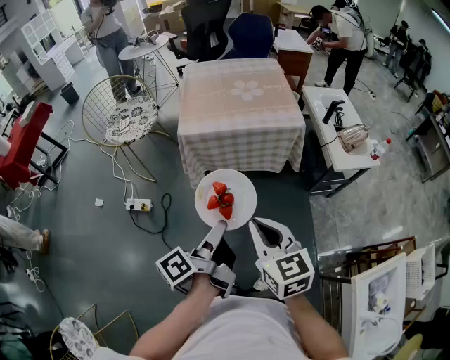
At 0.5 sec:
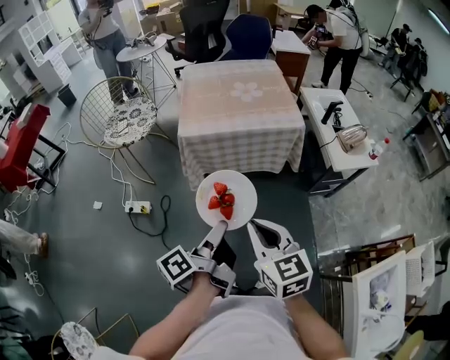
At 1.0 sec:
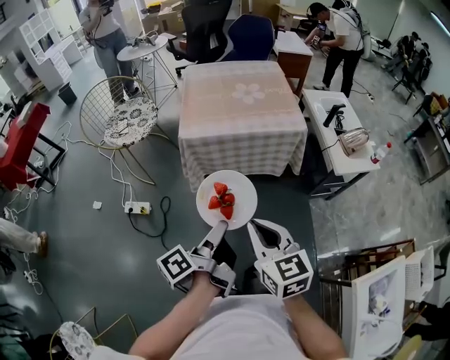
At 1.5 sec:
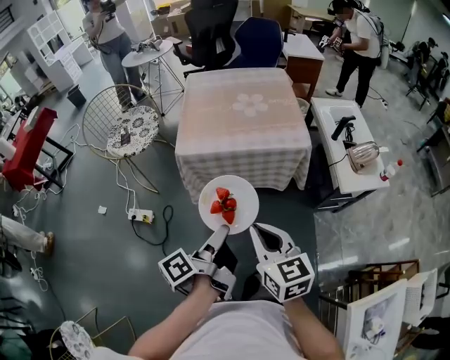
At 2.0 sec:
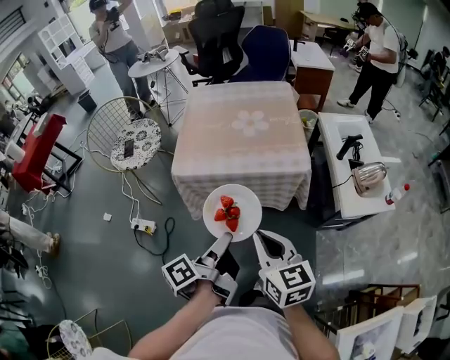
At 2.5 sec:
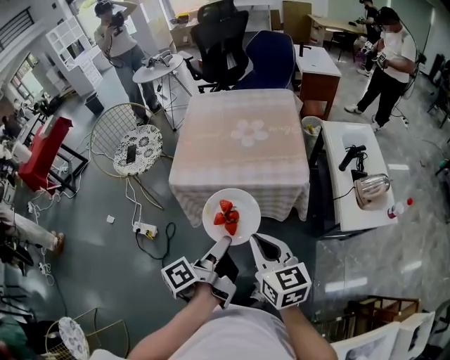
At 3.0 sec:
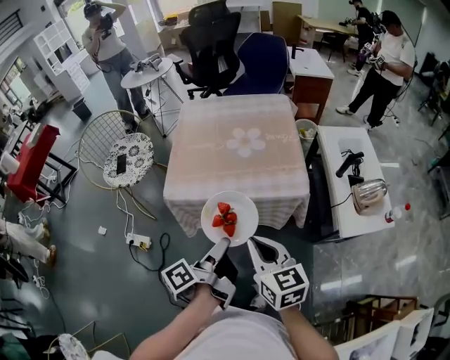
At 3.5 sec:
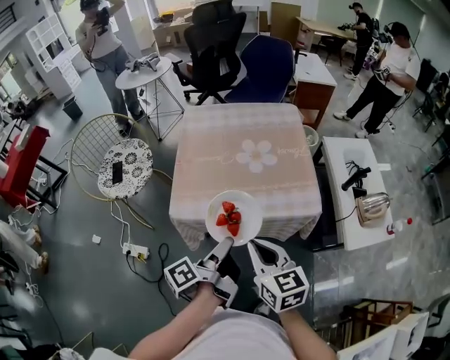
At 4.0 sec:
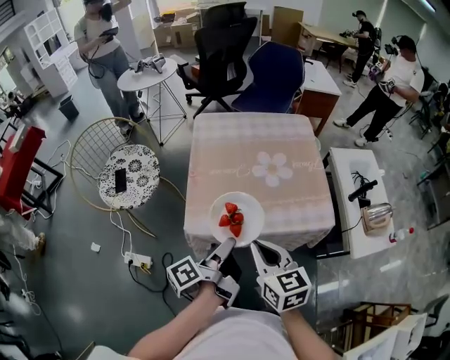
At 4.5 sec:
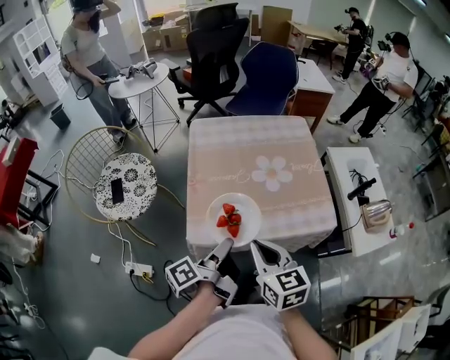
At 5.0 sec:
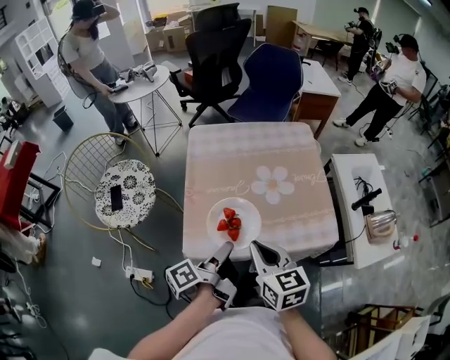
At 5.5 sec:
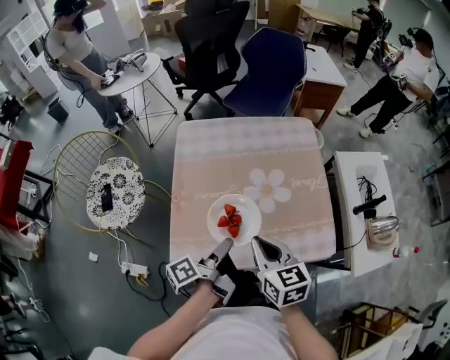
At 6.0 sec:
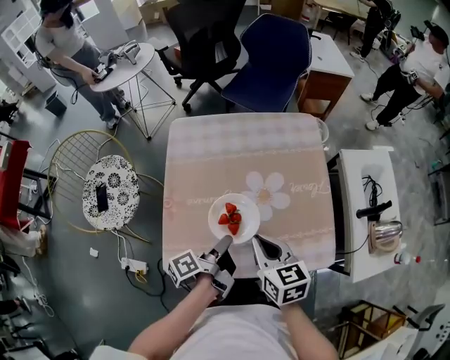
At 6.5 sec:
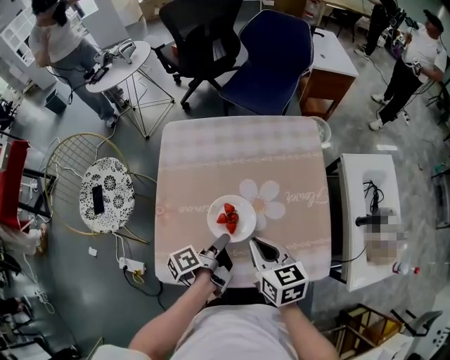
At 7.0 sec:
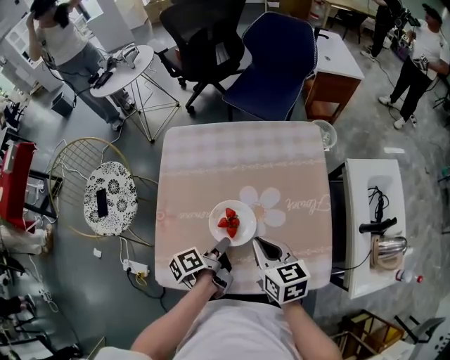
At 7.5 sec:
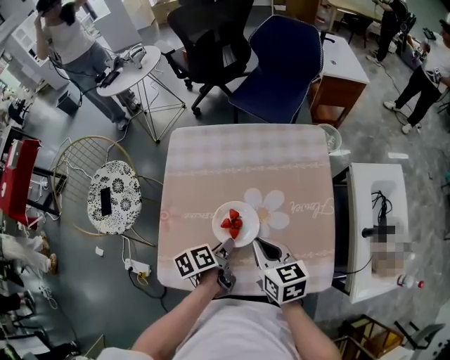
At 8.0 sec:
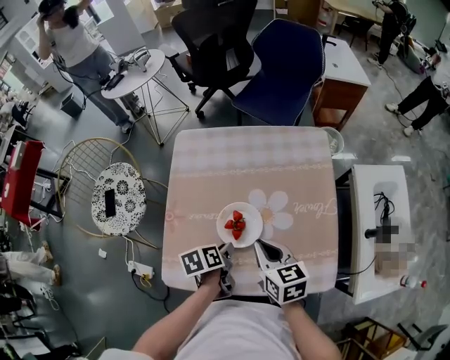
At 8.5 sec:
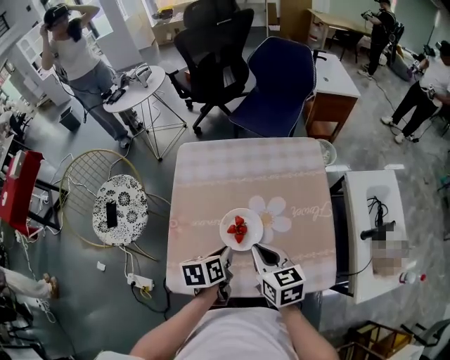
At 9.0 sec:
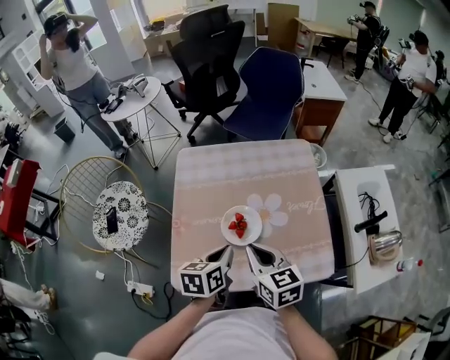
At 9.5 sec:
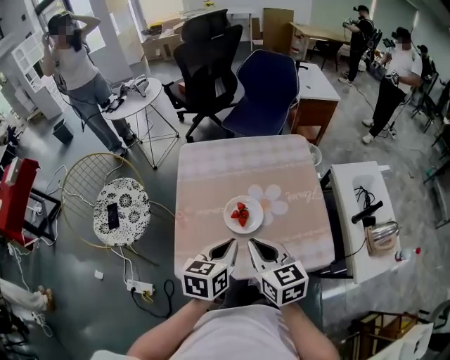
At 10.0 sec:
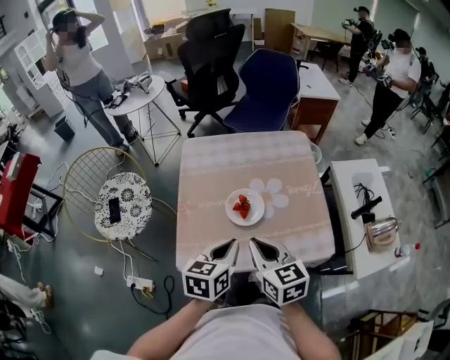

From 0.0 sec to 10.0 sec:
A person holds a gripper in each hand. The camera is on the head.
From 0.0 sec to 2.0 sec: The right gripper shifts by some 20 cm.
From 2.0 sec to 4.0 sec: The right gripper shifts by roughly 25 cm.
From 4.0 sec to 6.0 sec: The right gripper ends up some 25 cm from where it was.
From 6.0 sec to 8.0 sec: The right gripper ends up roughly 5 cm from where it was.
From 8.0 sec to 10.0 sec: The right gripper moves approximately 15 cm.

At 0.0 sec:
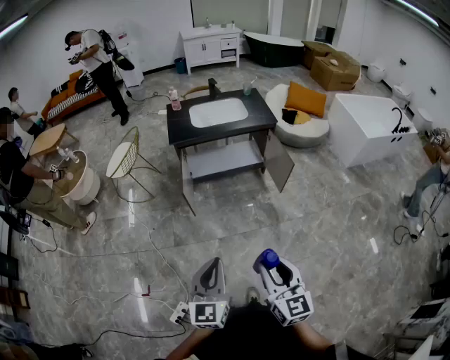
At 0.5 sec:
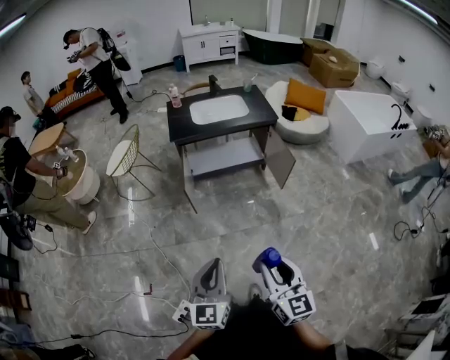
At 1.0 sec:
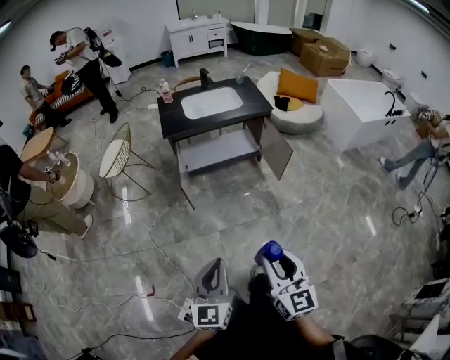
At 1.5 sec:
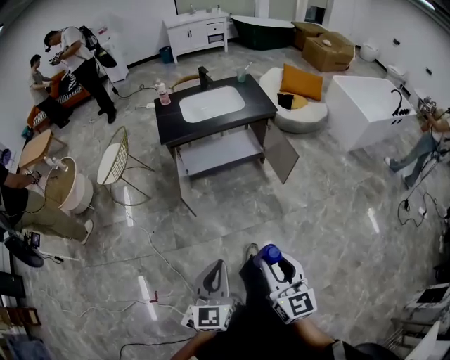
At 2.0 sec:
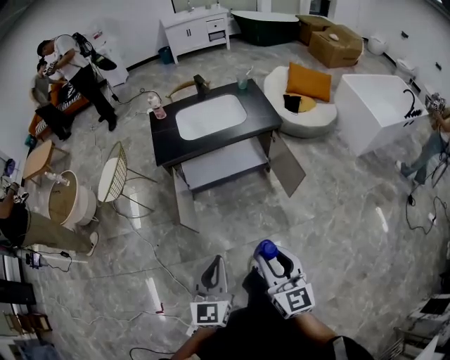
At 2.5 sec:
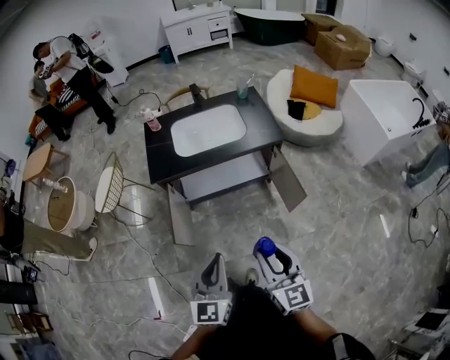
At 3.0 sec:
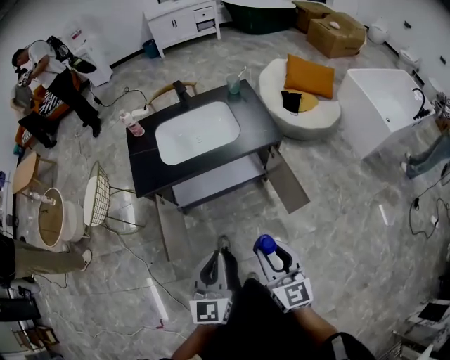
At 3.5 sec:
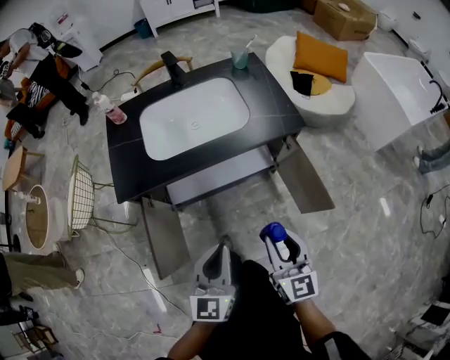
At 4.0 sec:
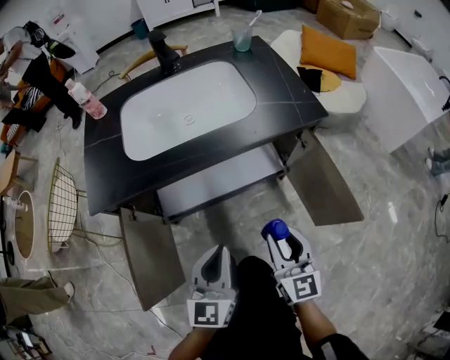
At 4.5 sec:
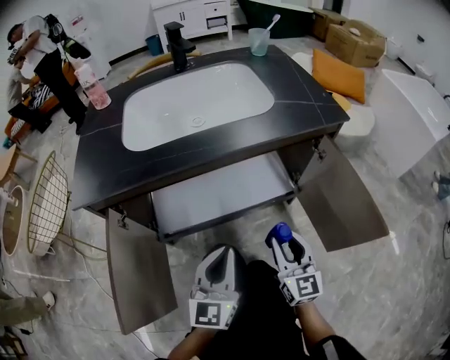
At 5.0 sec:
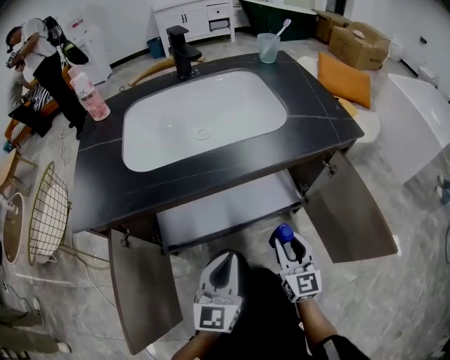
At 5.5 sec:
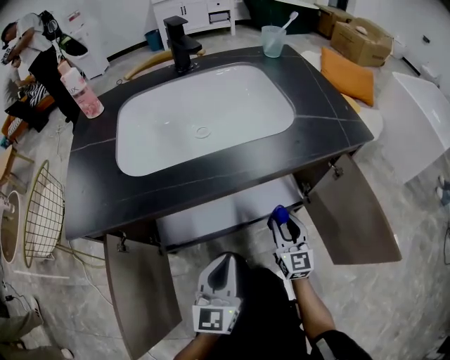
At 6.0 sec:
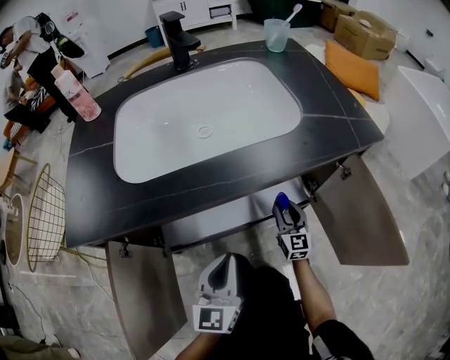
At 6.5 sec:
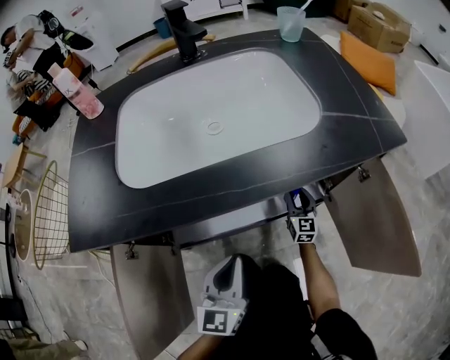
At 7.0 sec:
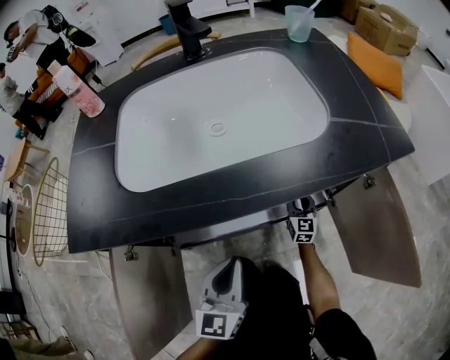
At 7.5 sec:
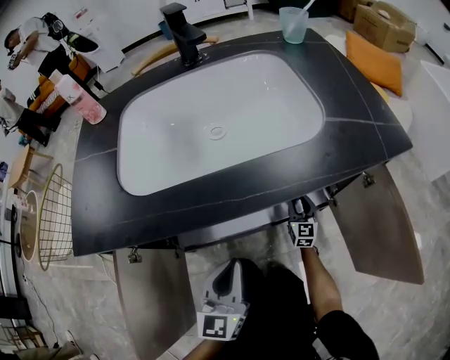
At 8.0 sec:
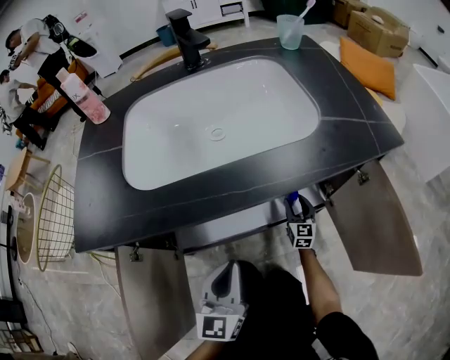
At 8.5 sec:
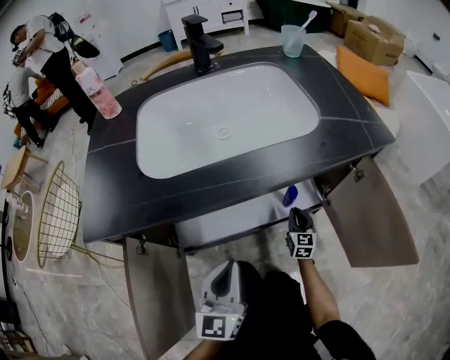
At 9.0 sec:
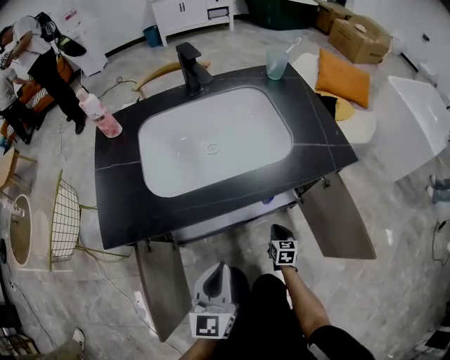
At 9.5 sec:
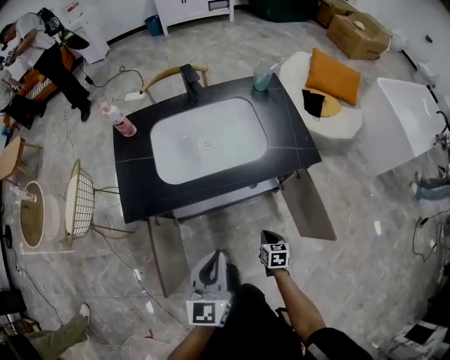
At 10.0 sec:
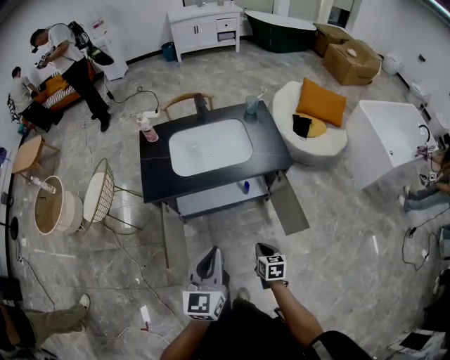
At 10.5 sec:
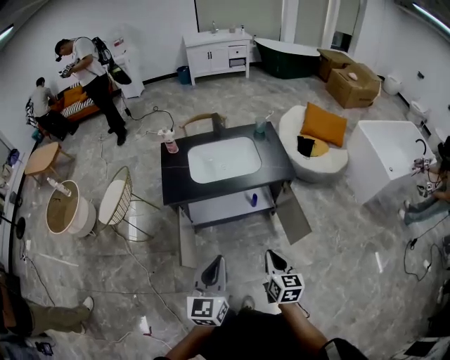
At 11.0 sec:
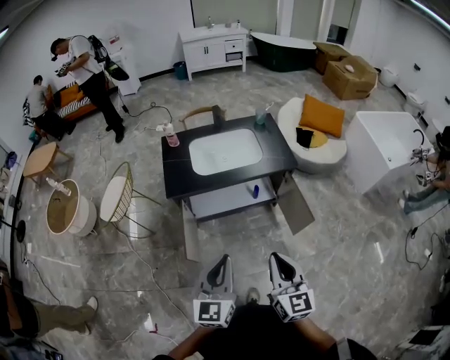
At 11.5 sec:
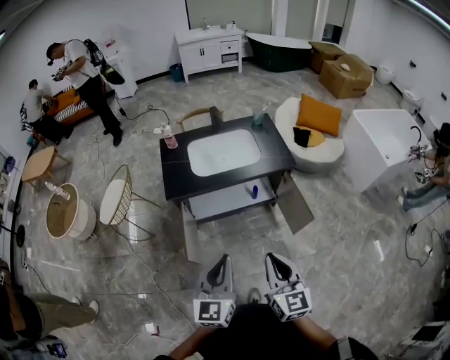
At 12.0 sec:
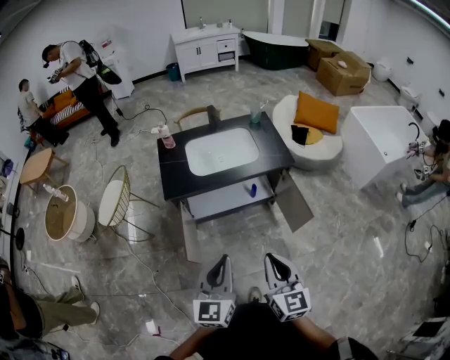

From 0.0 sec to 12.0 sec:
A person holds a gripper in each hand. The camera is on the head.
From 0.0 sec to 2.0 sec: The grippers both shift forward by roughly 25 cm.
From 2.0 sec to 4.0 sec: Both grippers are carried forward, about 40 cm. The two grippers go about 40 cm downward.
From 4.0 sec to 6.0 sec: The left gripper travels downward and forward by approximately 20 cm; the right gripper shifts roughly 40 cm downward and forward.
From 6.0 sec to 8.0 sec: The right gripper heads downward and forward, covering some 10 cm.
From 8.0 sec to 10.0 sec: Both grippers travel together upward and backward, some 60 cm. The right gripper points its fingers roughly 30 degrees further downward, and closes its fingers.
From 10.0 sec to 12.0 sec: The left gripper heads backward and upward, covering roughly 15 cm, while the right gripper moves upward and backward, about 35 cm, and angles its fingers upward, by approximately 40 degrees.

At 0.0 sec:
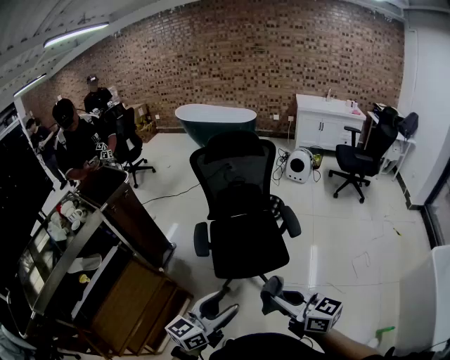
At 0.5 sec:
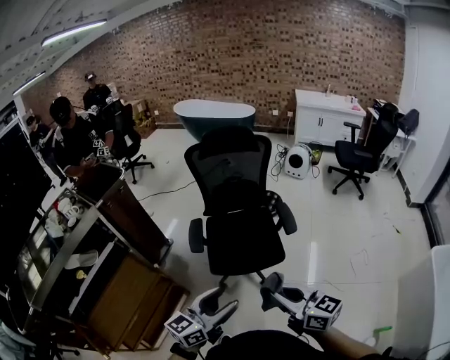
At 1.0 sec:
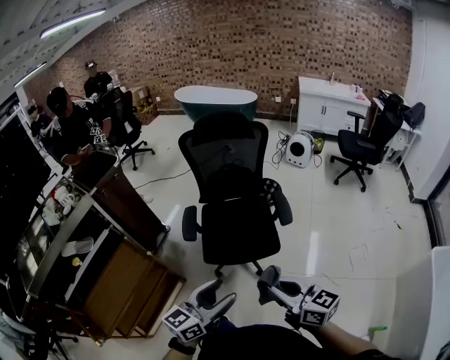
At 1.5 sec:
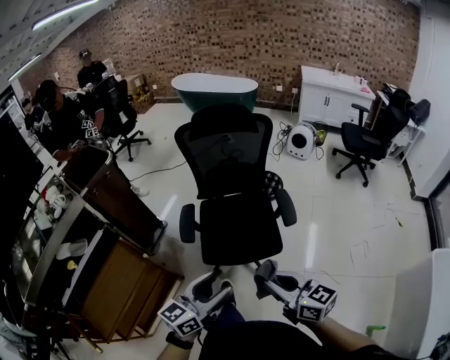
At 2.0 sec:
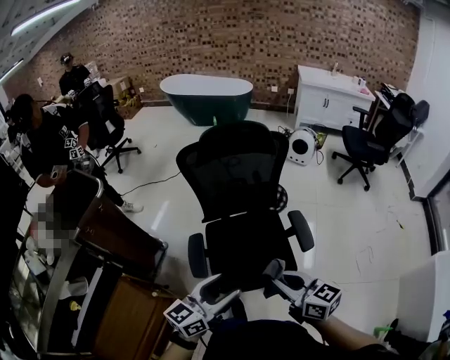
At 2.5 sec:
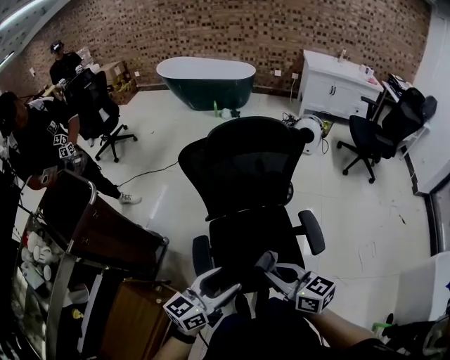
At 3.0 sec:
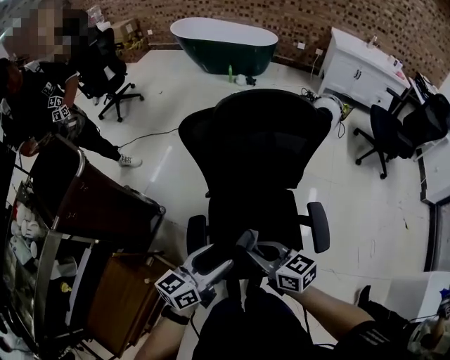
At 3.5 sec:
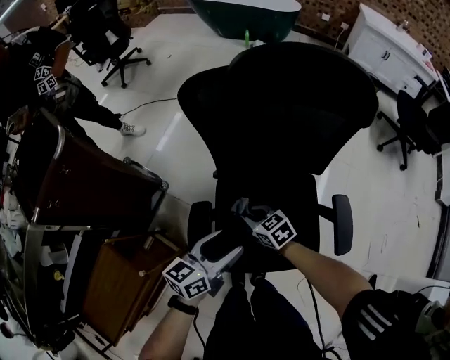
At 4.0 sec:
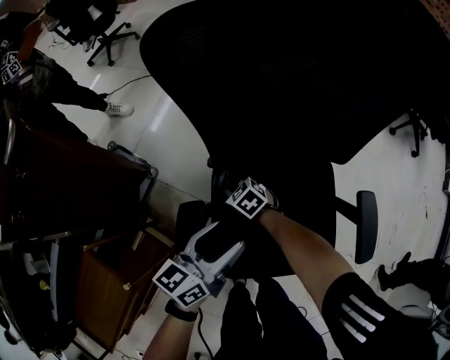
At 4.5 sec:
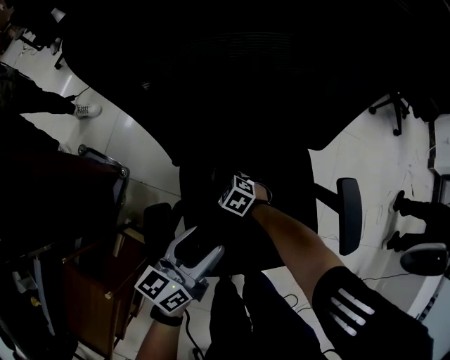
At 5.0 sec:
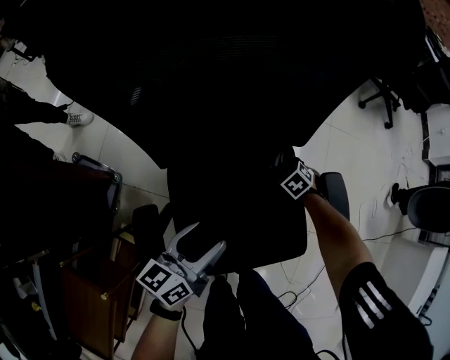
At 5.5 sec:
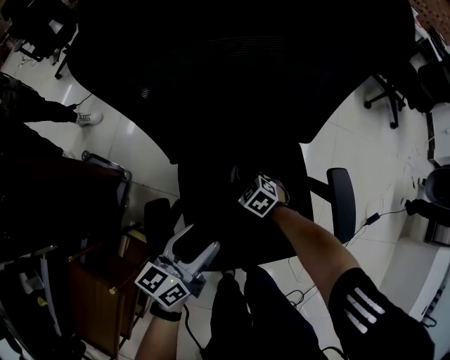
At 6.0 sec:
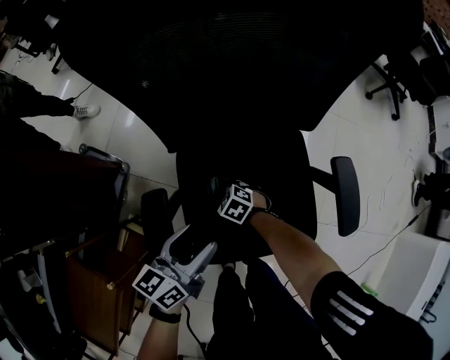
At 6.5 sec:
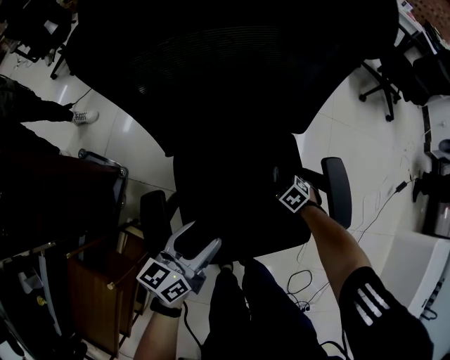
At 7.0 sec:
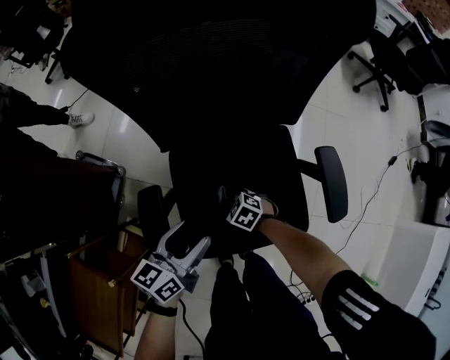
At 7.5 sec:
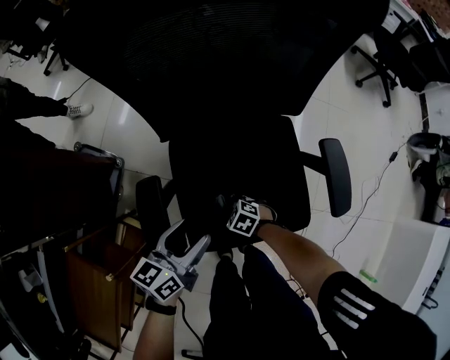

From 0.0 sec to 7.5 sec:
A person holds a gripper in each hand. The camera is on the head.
From 0.0 sec to 2.0 sec: Both grippers move forward, some 25 cm.
From 2.0 sec to 4.0 sec: The right gripper heads downward and forward, covering about 70 cm, and tips its fingers downward by roughly 40 degrees. Meanwhile the left gripper heads downward and forward, covering about 40 cm, and rotates about 20 degrees.
From 5.5 sec to 7.5 sec: The left gripper changes place by about 5 cm. Meanwhile the right gripper ends up some 20 cm from where it was.
